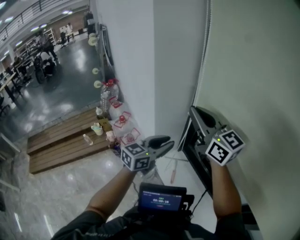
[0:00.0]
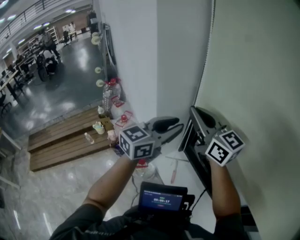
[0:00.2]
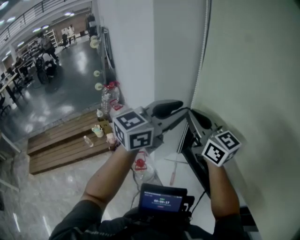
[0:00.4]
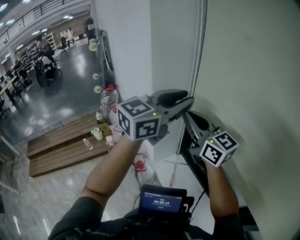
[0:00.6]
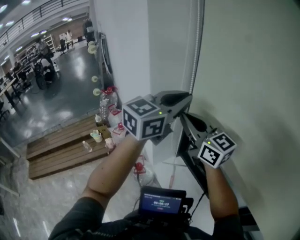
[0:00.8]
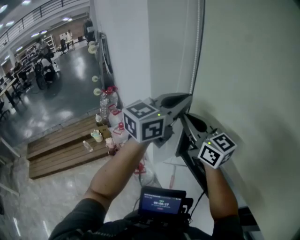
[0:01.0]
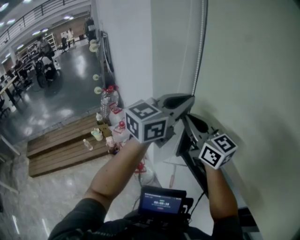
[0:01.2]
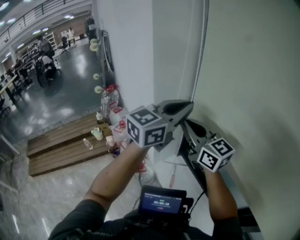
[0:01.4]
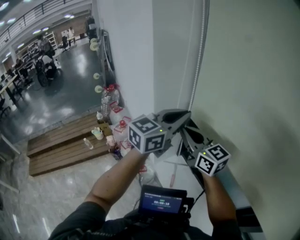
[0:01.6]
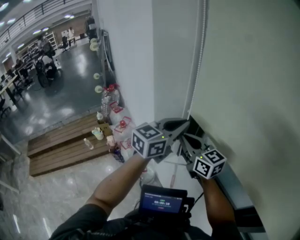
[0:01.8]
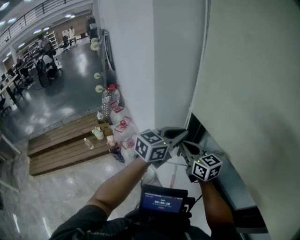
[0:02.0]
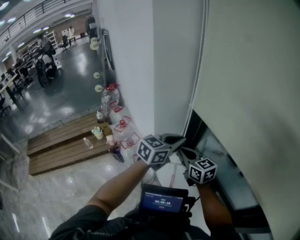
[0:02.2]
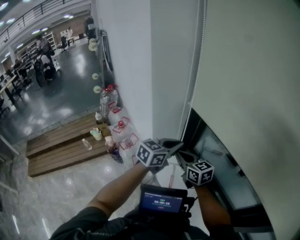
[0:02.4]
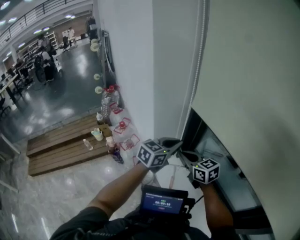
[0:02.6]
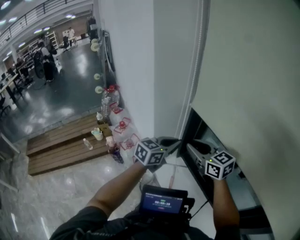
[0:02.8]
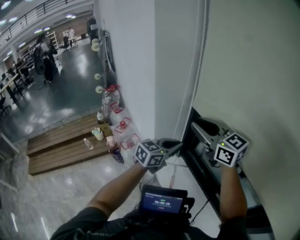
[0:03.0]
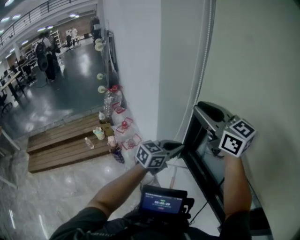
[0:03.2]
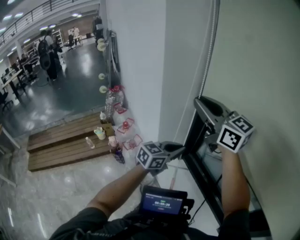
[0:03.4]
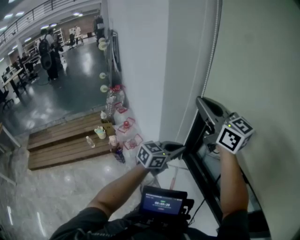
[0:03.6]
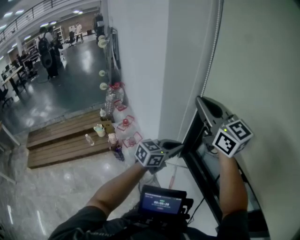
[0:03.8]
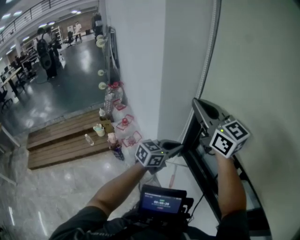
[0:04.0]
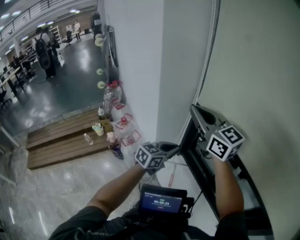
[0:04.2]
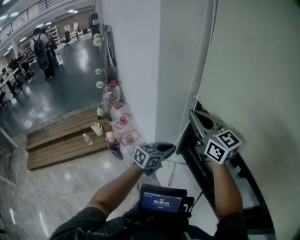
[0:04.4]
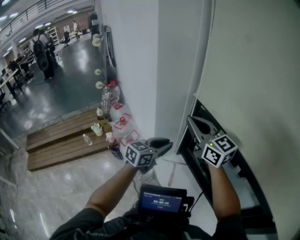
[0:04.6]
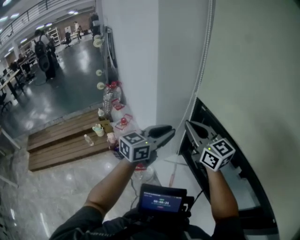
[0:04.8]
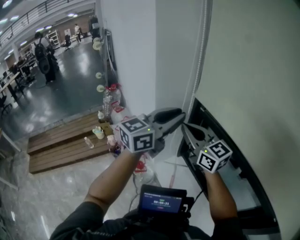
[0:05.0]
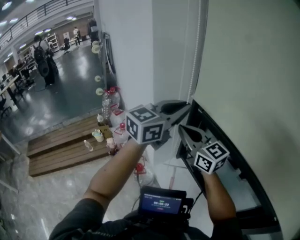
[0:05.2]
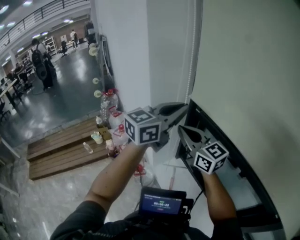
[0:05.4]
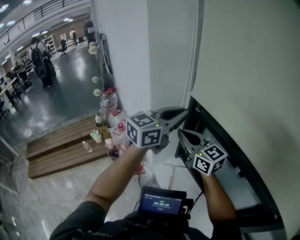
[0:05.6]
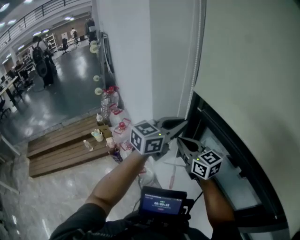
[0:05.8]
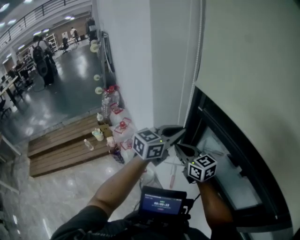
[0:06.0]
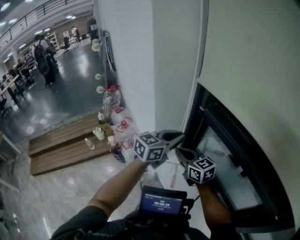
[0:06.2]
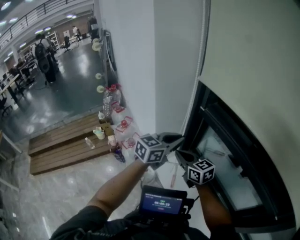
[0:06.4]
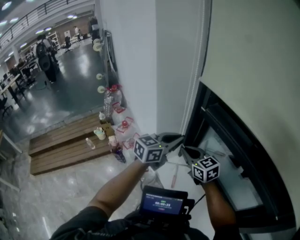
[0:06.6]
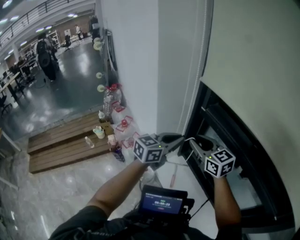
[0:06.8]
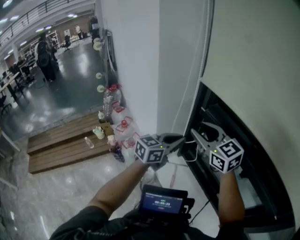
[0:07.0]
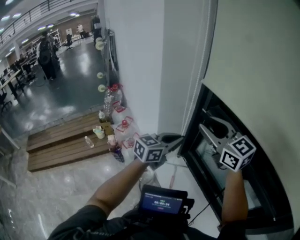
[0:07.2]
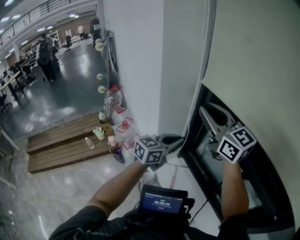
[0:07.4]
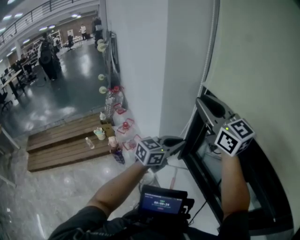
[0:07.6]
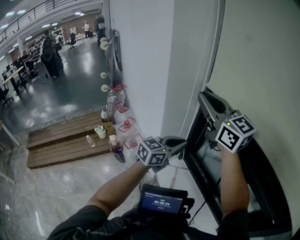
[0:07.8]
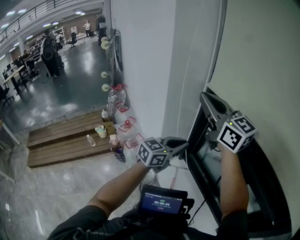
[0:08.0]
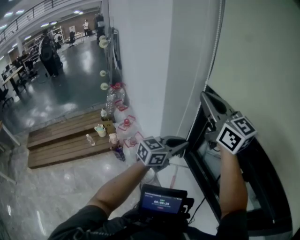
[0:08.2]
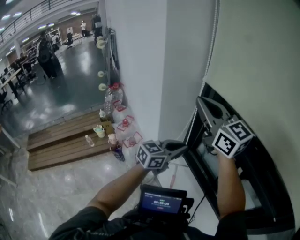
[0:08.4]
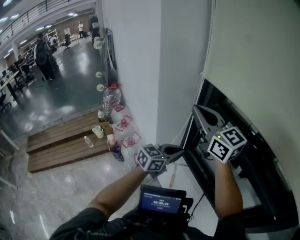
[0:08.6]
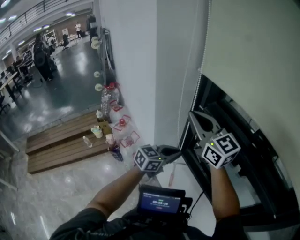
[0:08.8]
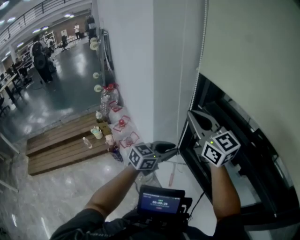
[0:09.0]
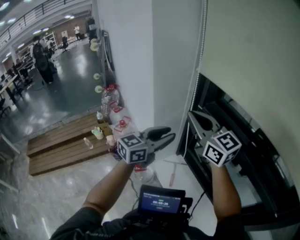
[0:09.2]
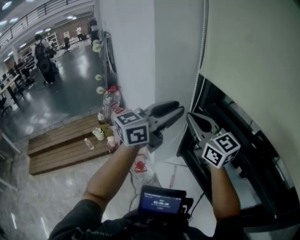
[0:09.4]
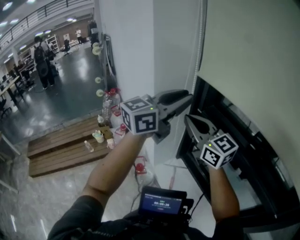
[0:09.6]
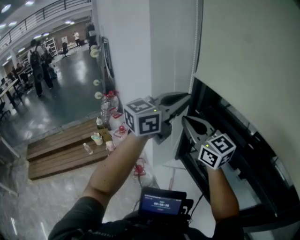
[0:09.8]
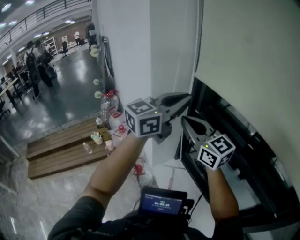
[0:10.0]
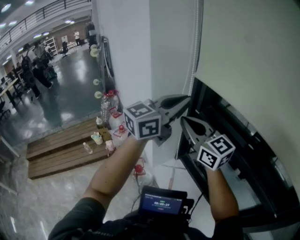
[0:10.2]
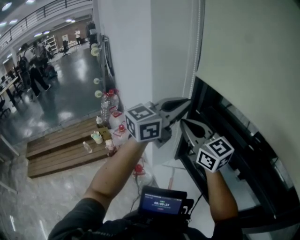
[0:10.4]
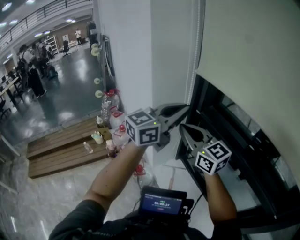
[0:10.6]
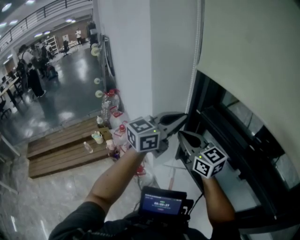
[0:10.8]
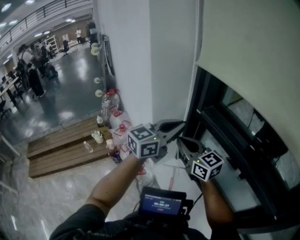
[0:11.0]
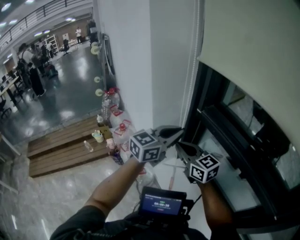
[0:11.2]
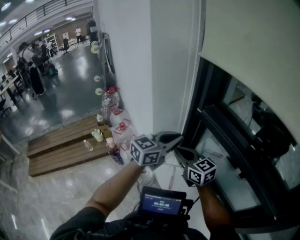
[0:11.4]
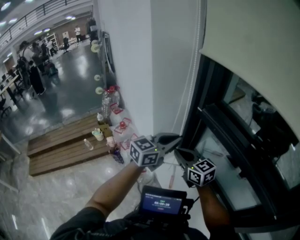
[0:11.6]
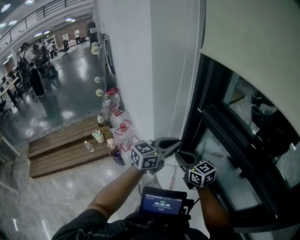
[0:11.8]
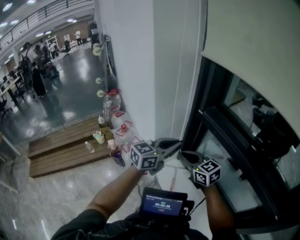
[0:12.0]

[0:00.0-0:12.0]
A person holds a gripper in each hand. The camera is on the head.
0:00.0 to 0:01.6: The right gripper shifts roughly 5 cm downward; the left gripper goes roughly 15 cm upward, and closes its fingers.
0:01.6 to 0:03.0: The left gripper travels downward by roughly 15 cm, while the right gripper reaches approximately 15 cm downward, then returns, and opens its fingers.
0:03.0 to 0:04.4: The left gripper travels downward by some 5 cm; the right gripper moves approximately 10 cm upward and comes back, and closes up.
0:04.4 to 0:06.0: The right gripper goes approximately 15 cm downward. Meanwhile the left gripper goes some 15 cm upward.
0:06.0 to 0:07.6: The left gripper shifts by roughly 5 cm. The right gripper goes some 25 cm upward, and turns by about 20 degrees.
0:07.6 to 0:09.0: Both grippers travel together downward, some 5 cm. The right gripper closes its fingers.
0:09.0 to 0:10.4: The left gripper heads upward, covering roughly 25 cm, and rotates about 30 degrees.
0:10.4 to 0:12.0: The two grippers go roughly 20 cm downward. The right gripper rotates some 20 degrees.

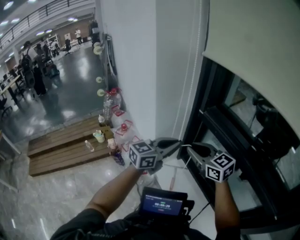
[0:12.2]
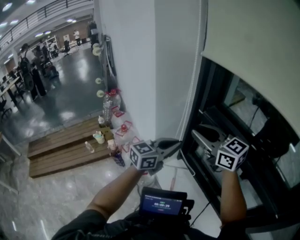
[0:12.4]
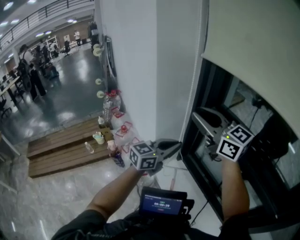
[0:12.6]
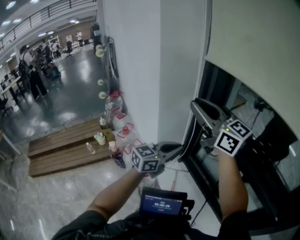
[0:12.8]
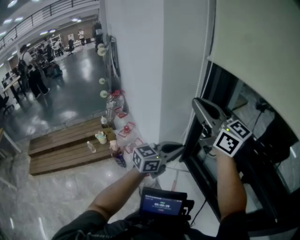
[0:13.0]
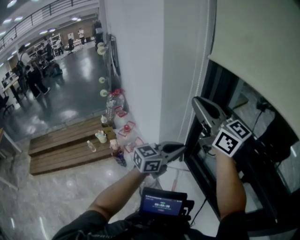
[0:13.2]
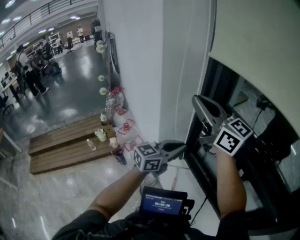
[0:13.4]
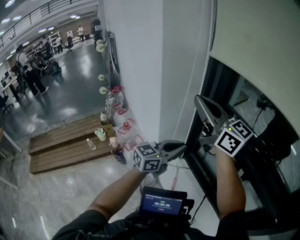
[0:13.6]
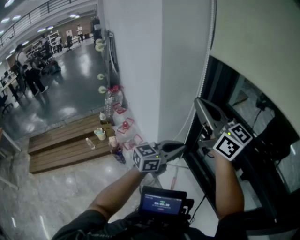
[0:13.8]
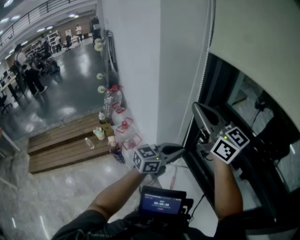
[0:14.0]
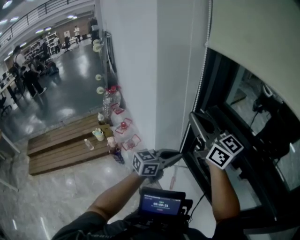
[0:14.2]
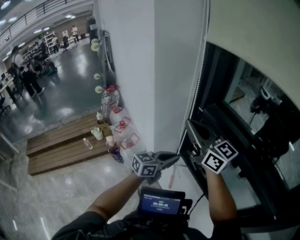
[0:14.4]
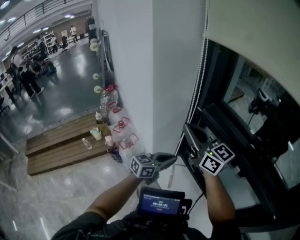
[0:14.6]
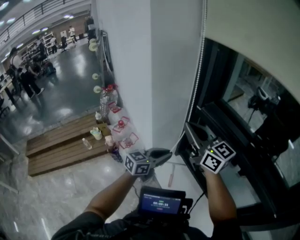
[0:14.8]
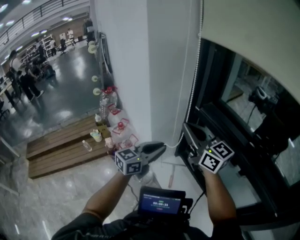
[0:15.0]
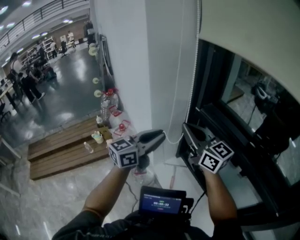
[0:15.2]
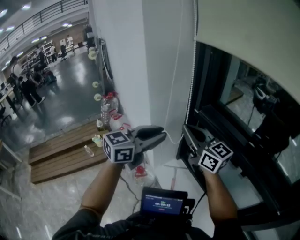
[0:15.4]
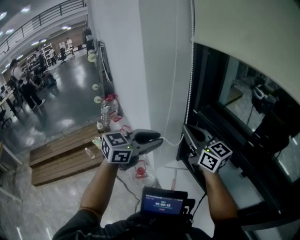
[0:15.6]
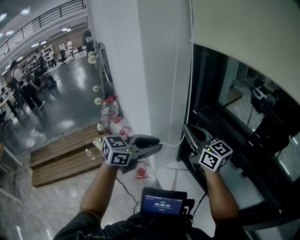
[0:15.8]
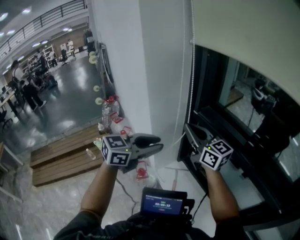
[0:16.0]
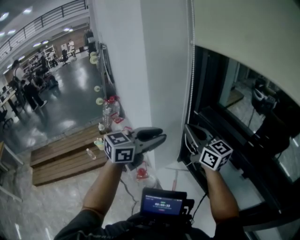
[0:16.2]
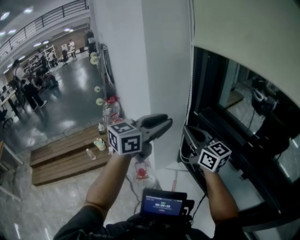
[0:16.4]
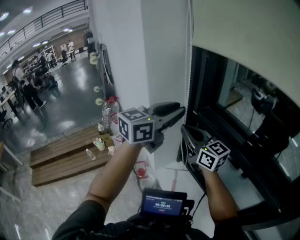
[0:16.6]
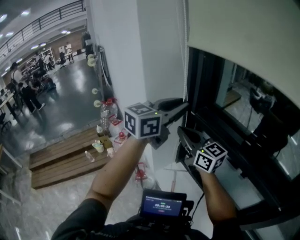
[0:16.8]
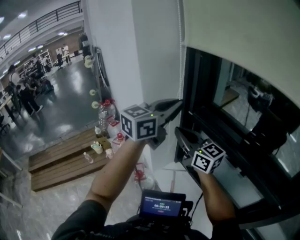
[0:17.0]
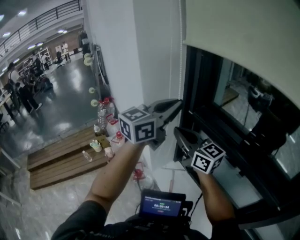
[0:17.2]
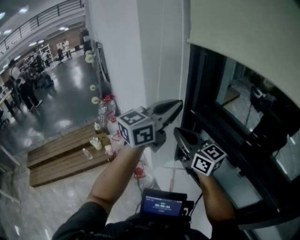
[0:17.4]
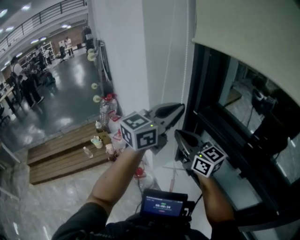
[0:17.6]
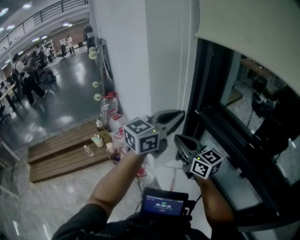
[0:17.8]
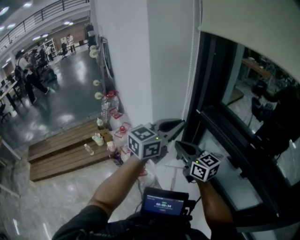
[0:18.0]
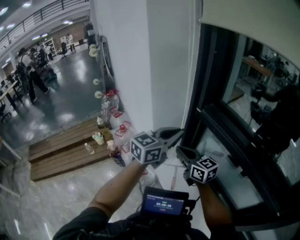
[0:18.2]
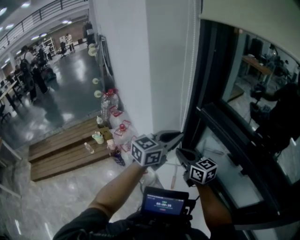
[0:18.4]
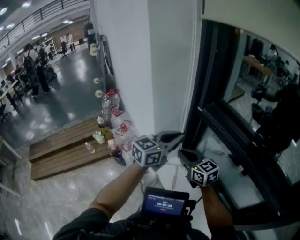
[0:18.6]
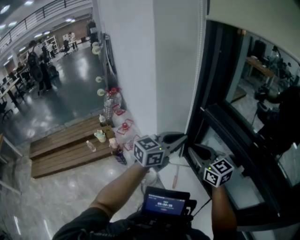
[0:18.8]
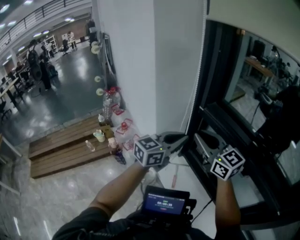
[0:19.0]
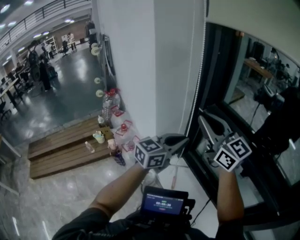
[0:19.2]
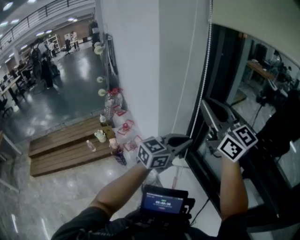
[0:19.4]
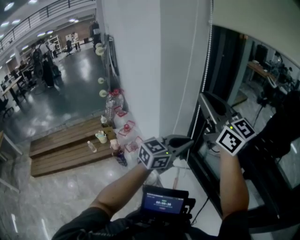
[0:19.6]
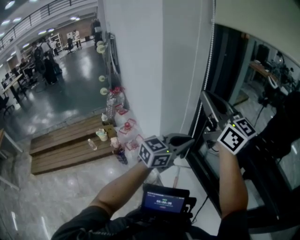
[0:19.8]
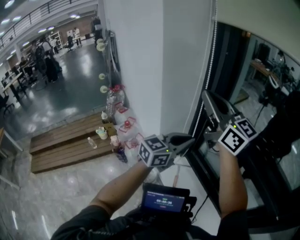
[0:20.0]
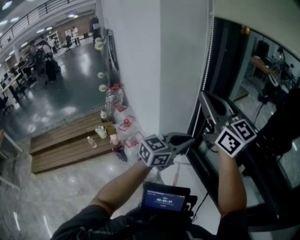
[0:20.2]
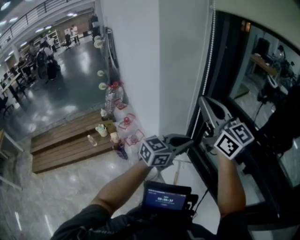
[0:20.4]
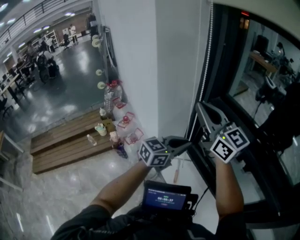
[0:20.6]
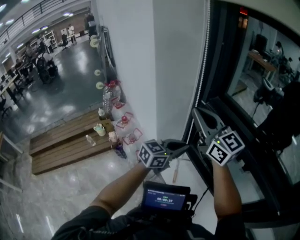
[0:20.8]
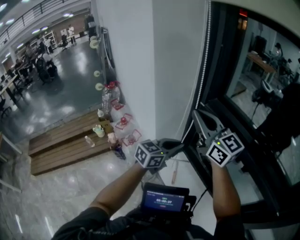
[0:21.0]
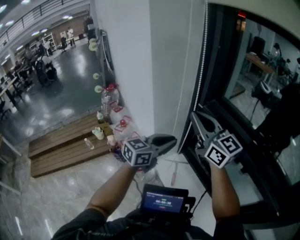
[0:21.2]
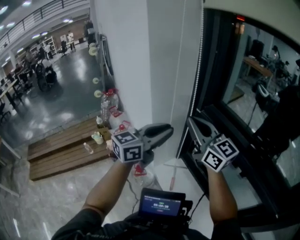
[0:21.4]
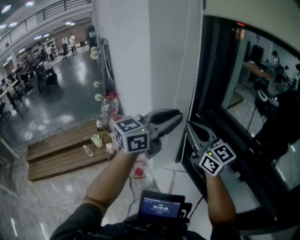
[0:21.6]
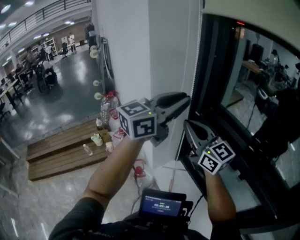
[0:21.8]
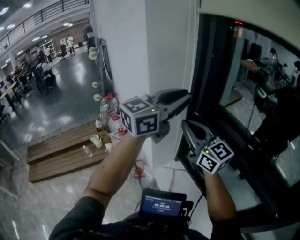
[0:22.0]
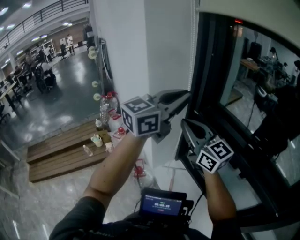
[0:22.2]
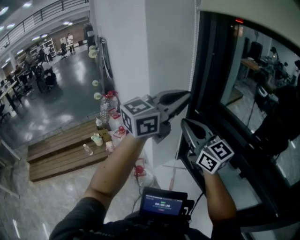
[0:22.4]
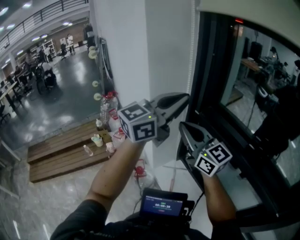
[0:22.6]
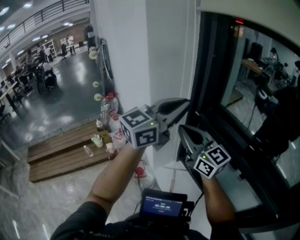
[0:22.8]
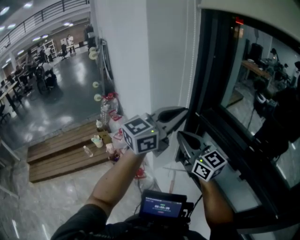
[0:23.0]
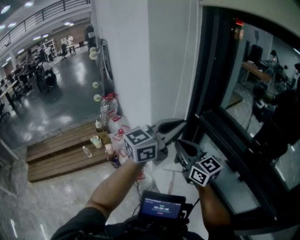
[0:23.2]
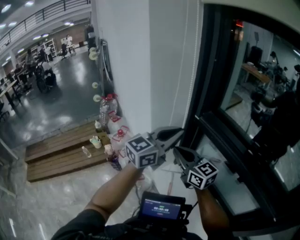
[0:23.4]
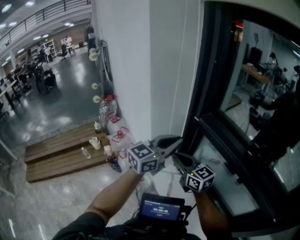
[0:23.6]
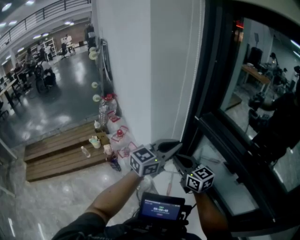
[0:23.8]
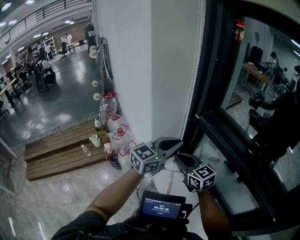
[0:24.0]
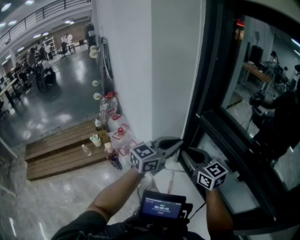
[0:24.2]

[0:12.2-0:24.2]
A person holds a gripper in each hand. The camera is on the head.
0:12.2 to 0:13.8: The right gripper goes some 20 cm upward, and tilts its fingers some 30 degrees upward.
0:13.8 to 0:15.2: The left gripper goes some 5 cm to the left, and reaches about 10 cm downward, then returns. The right gripper travels downward by approximately 10 cm.
0:15.2 to 0:16.6: The left gripper moves upward and to the right, roughly 15 cm.
0:16.6 to 0:18.2: Both grippers travel together downward, some 15 cm. The left gripper closes its fingers.
0:18.2 to 0:19.8: The right gripper travels upward by roughly 25 cm, and turns by about 30 degrees.
0:19.8 to 0:21.2: The left gripper changes place by some 5 cm. Meanwhile the right gripper goes roughly 10 cm downward.
0:21.2 to 0:22.6: The left gripper goes approximately 25 cm upward, and turns by approximately 20 degrees.
0:22.6 to 0:24.2: The right gripper travels downward by approximately 10 cm, while the left gripper heads downward, covering roughly 20 cm.
